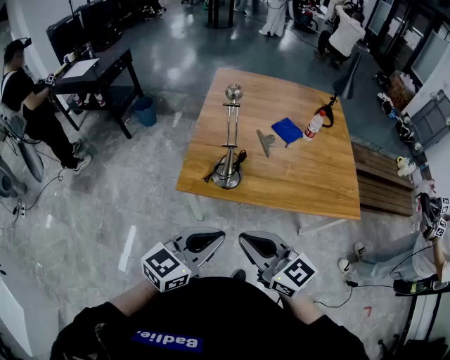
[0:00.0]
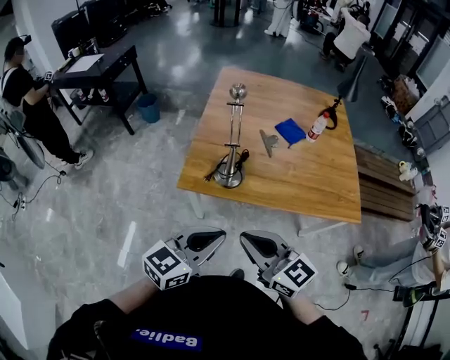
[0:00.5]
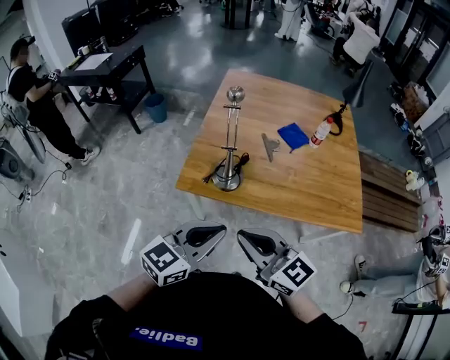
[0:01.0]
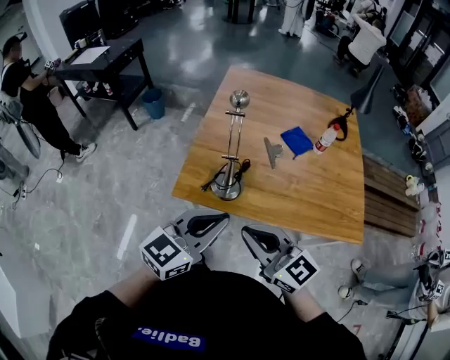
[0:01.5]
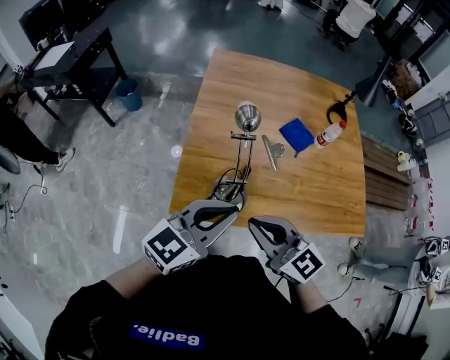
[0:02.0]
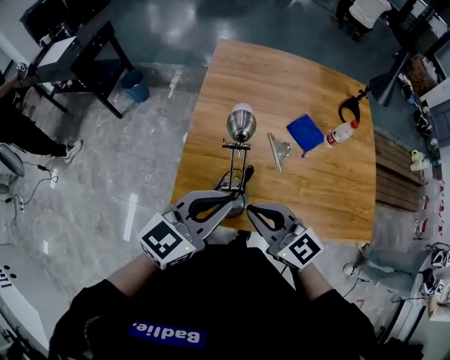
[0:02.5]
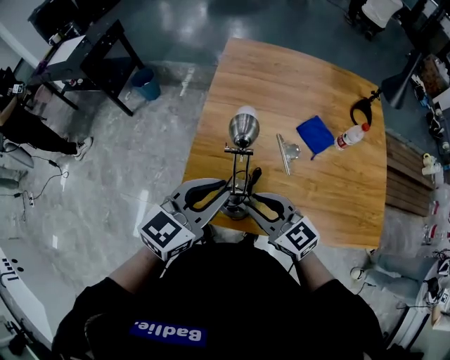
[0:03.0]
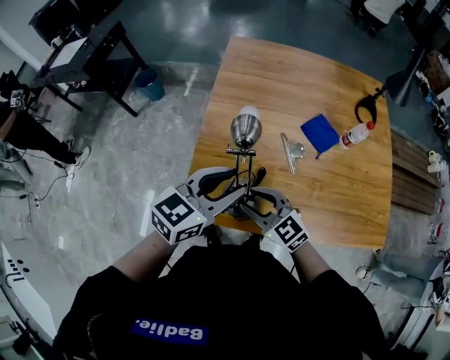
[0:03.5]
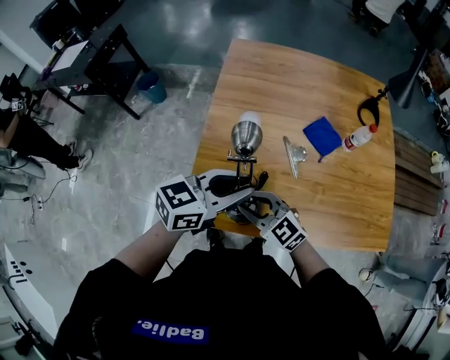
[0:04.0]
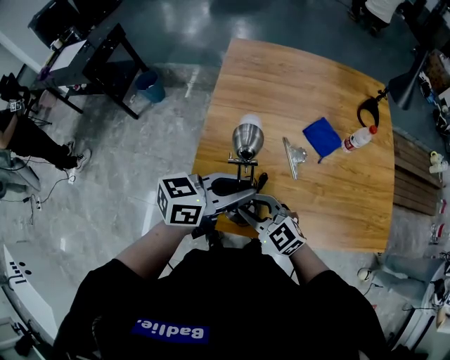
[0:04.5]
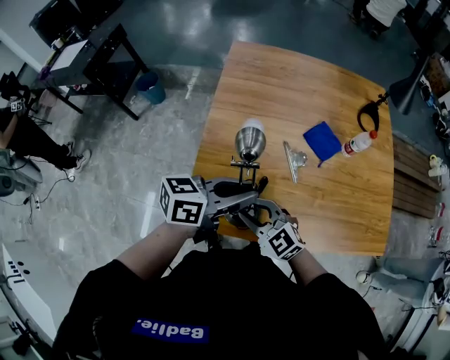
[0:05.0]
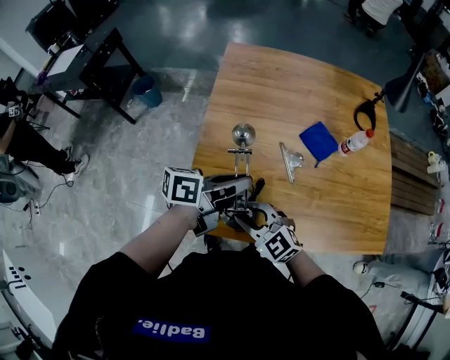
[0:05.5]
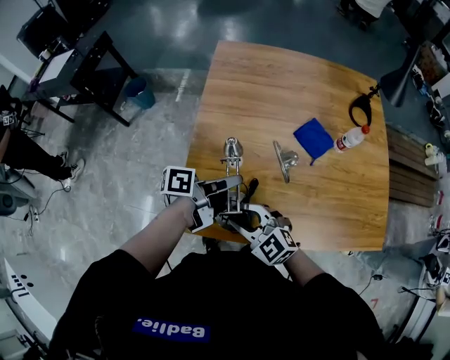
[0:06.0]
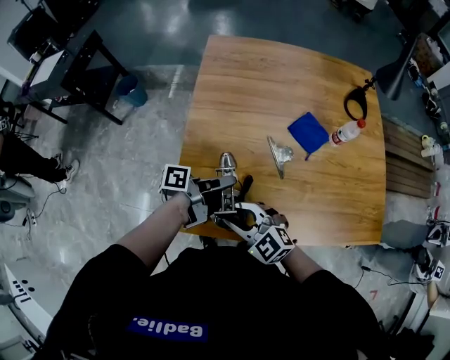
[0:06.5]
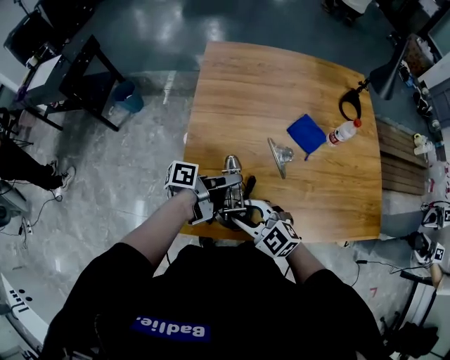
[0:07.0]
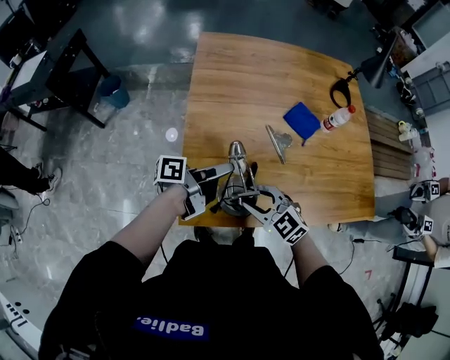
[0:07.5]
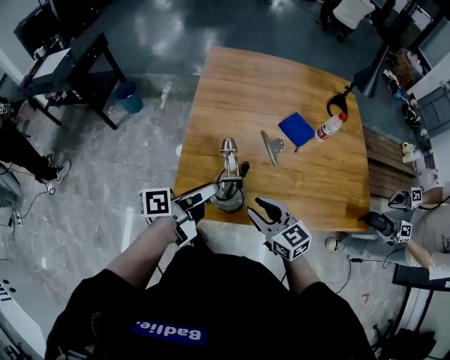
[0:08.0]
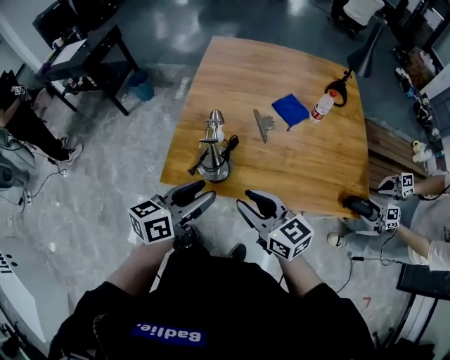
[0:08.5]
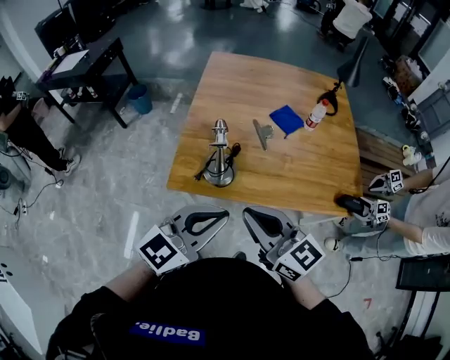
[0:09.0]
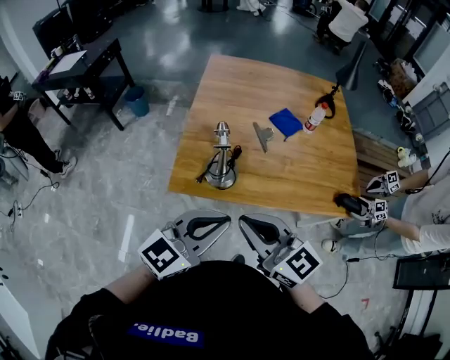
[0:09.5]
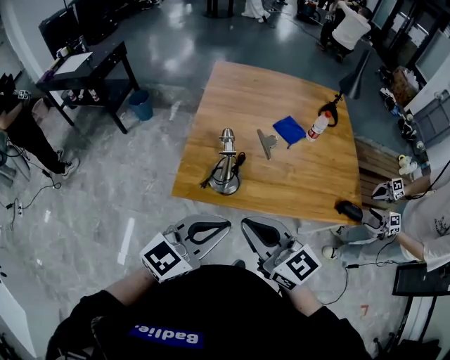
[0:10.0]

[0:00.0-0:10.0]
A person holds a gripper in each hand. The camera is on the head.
0:00.0 to 0:02.0: The two grippers go some 25 cm forward.
0:02.0 to 0:04.0: The left gripper moves about 15 cm. The right gripper goes some 15 cm downward, swivels some 20 degrees, and opens up.
0:04.0 to 0:06.0: The left gripper goes some 10 cm downward, and twists about 60 degrees counterclockwise, seen from behind.
0:06.0 to 0:08.0: The right gripper changes place by roughly 10 cm, and swivels approximately 30 degrees; the left gripper moves approximately 15 cm, and opens.
0:08.0 to 0:10.0: Both grippers travel together backward and upward, roughly 25 cm. The right gripper closes its fingers, while the left gripper twists about 80 degrees clockwise, seen from behind, and closes.

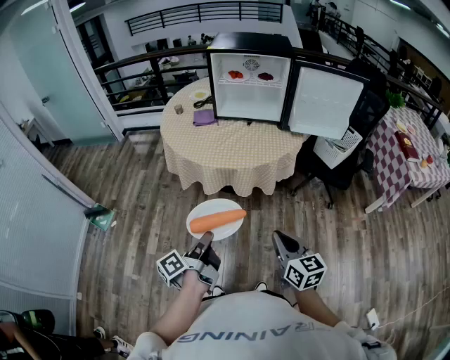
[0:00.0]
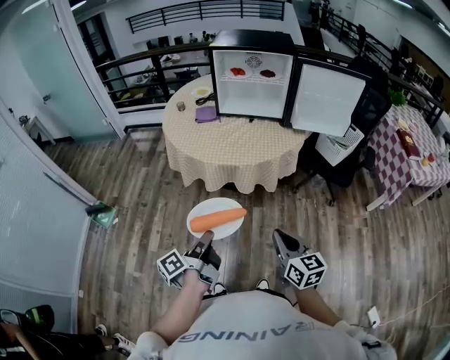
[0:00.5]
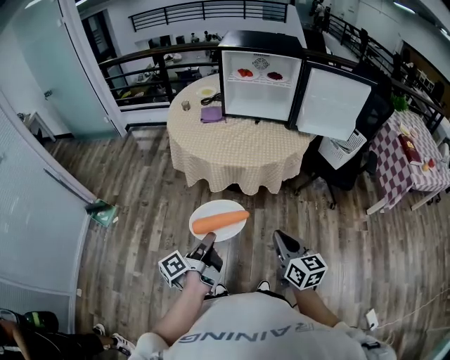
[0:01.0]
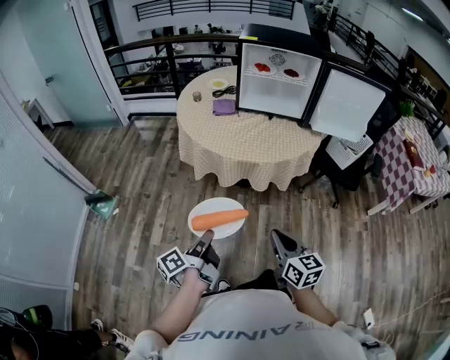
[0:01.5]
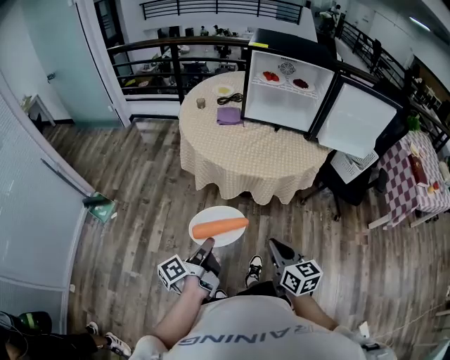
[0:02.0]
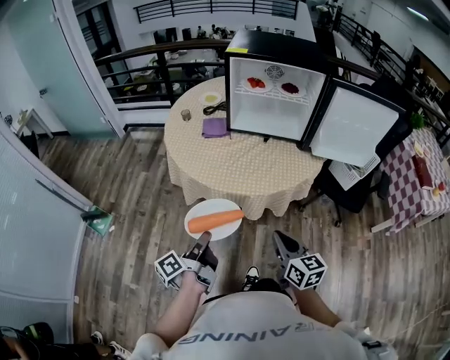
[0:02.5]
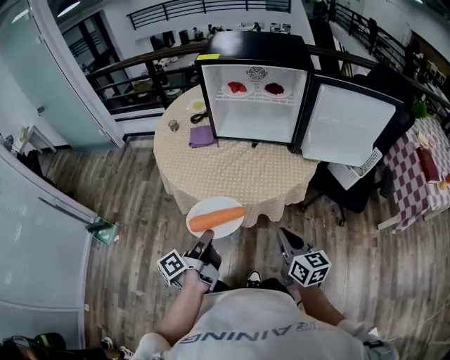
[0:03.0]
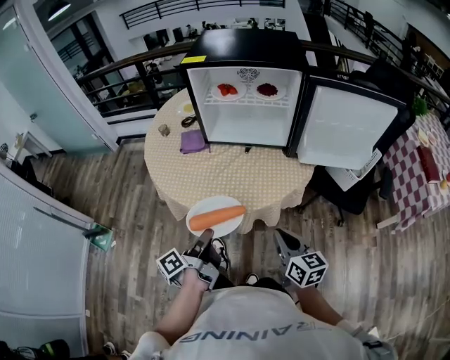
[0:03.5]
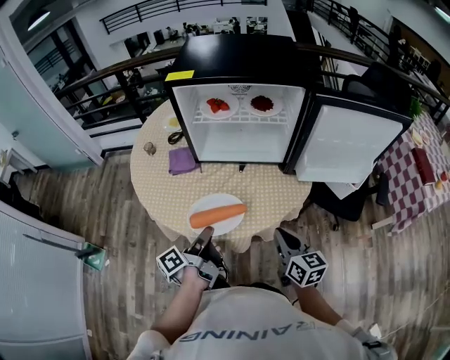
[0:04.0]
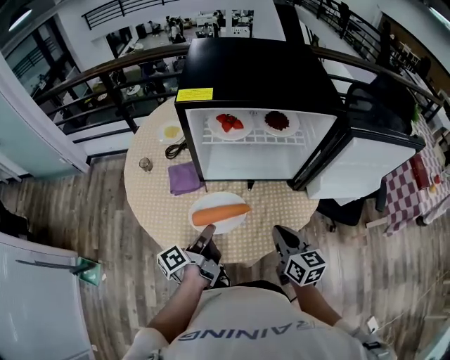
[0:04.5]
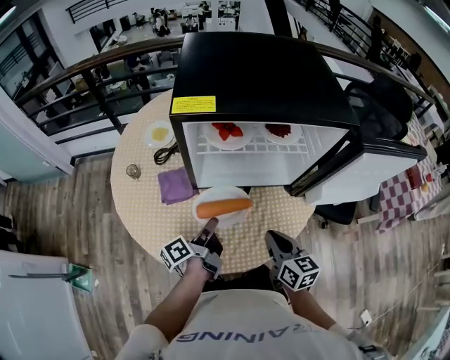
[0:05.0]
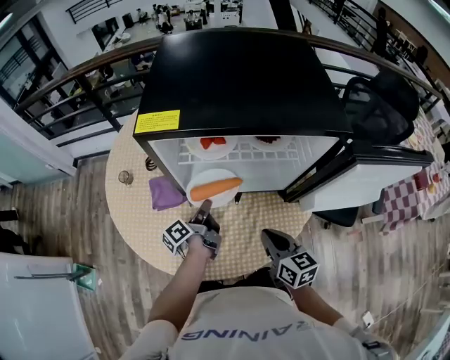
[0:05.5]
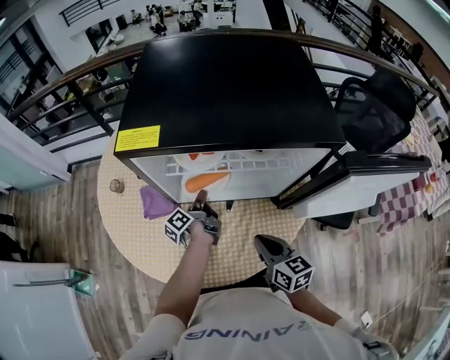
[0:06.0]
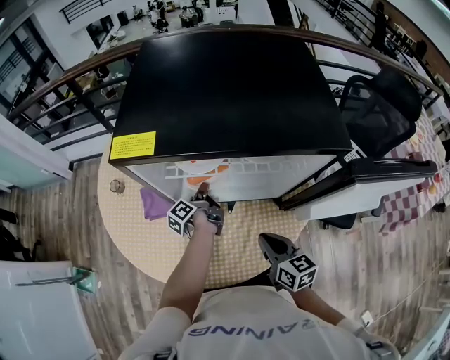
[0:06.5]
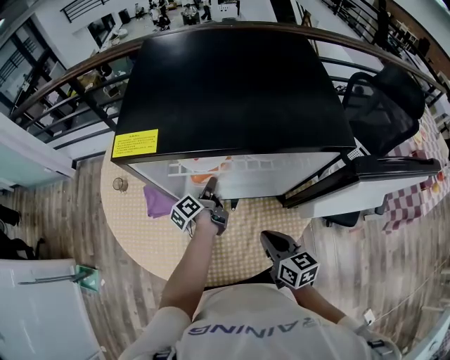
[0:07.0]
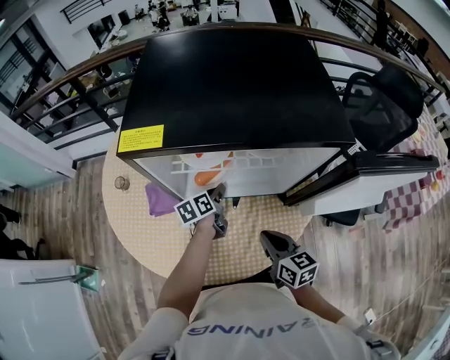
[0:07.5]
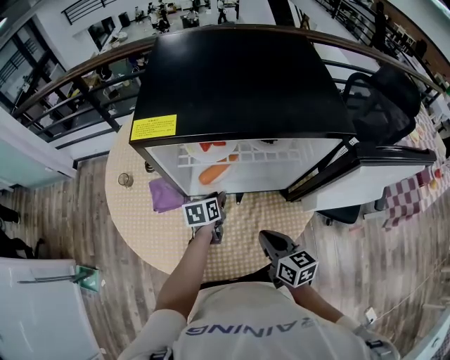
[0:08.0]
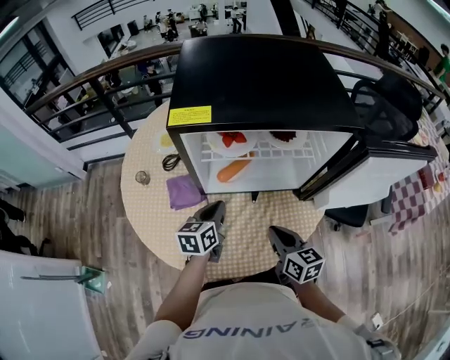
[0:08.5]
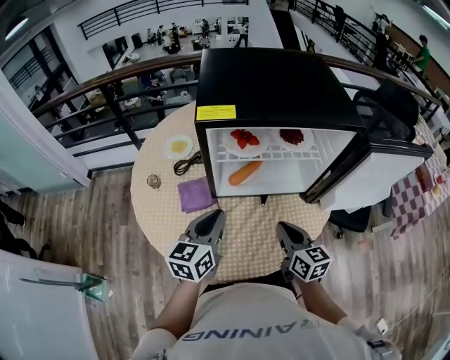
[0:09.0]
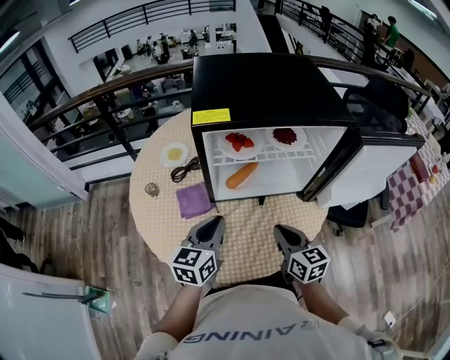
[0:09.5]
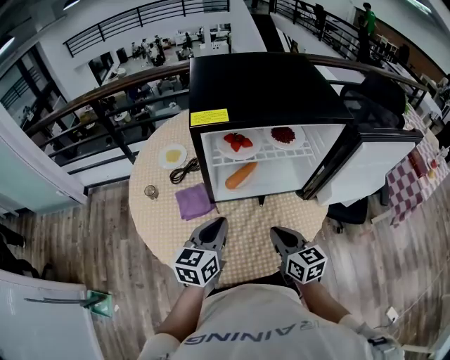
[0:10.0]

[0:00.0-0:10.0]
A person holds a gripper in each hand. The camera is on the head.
0:00.0 to 0:02.0: The right gripper moves roughly 15 cm.
0:02.0 to 0:04.0: The right gripper ends up about 35 cm from where it was.
0:04.0 to 0:06.0: The right gripper ends up some 15 cm from where it was.
0:08.0 to 0:10.0: The right gripper changes place by about 5 cm.

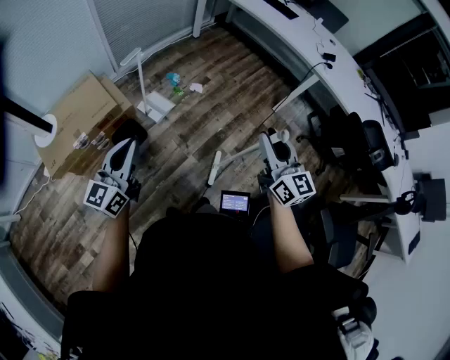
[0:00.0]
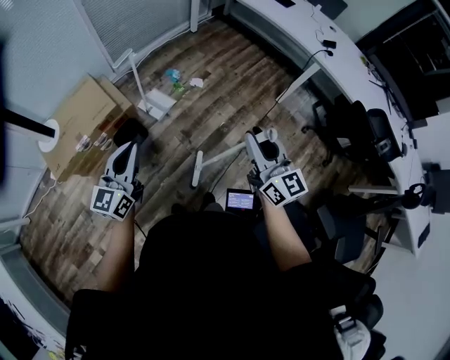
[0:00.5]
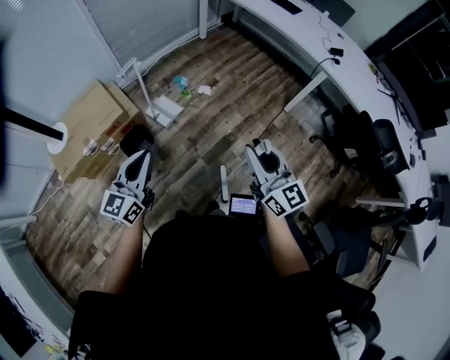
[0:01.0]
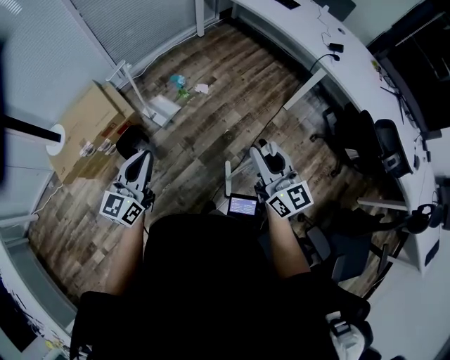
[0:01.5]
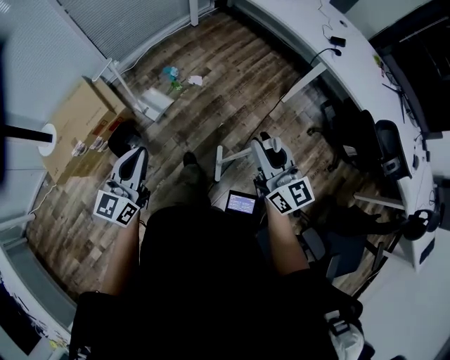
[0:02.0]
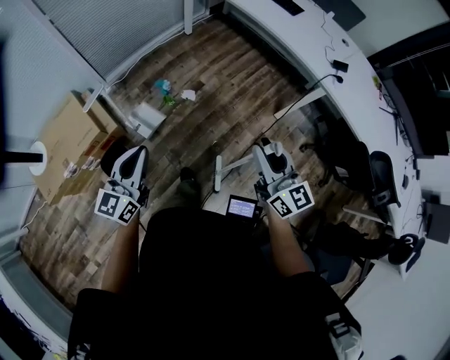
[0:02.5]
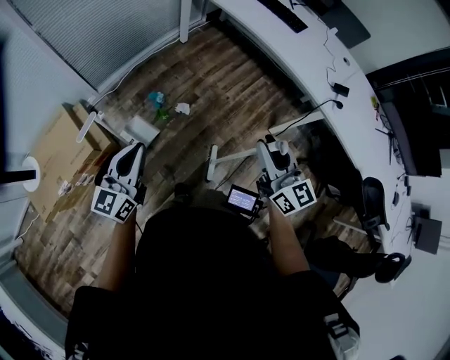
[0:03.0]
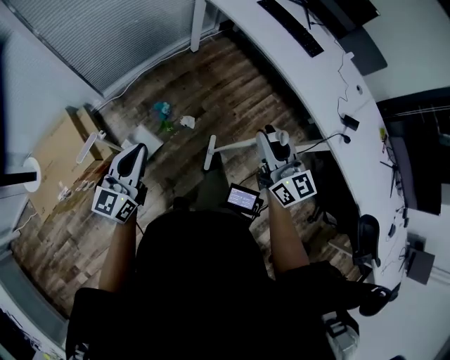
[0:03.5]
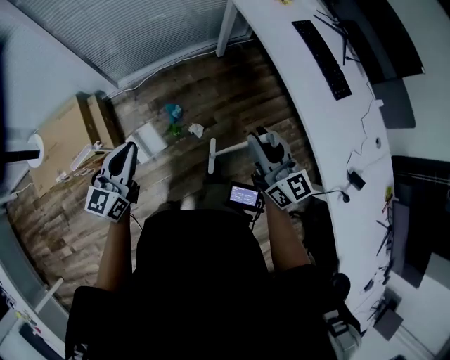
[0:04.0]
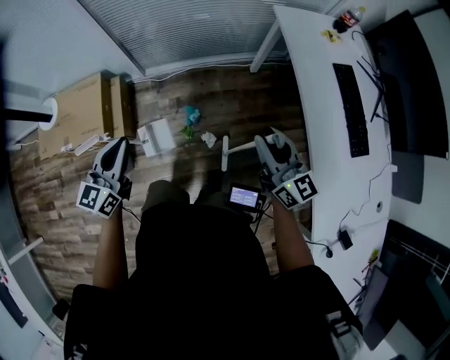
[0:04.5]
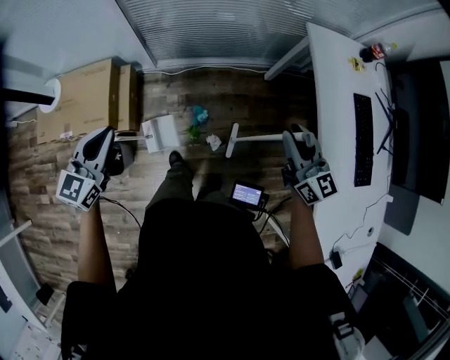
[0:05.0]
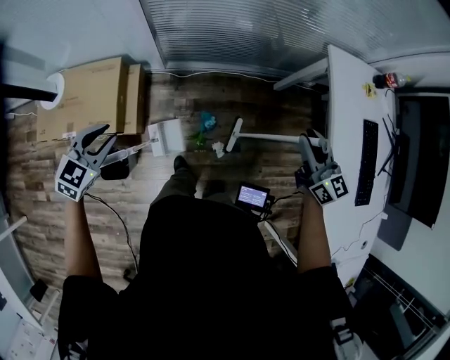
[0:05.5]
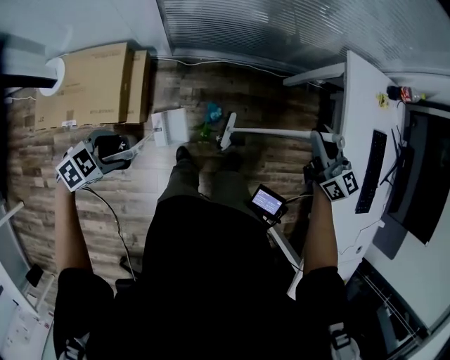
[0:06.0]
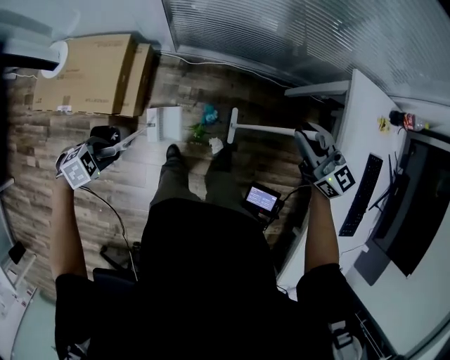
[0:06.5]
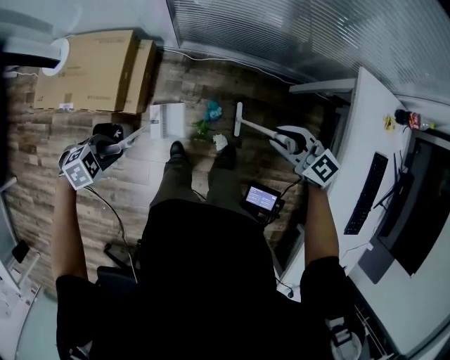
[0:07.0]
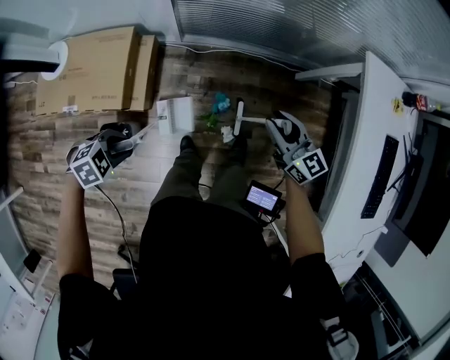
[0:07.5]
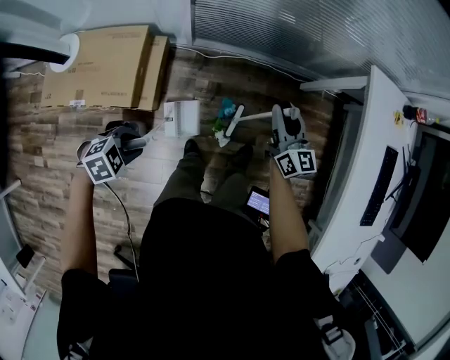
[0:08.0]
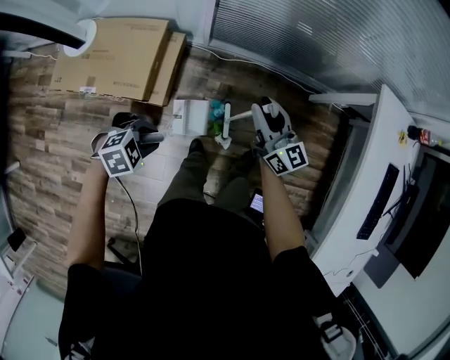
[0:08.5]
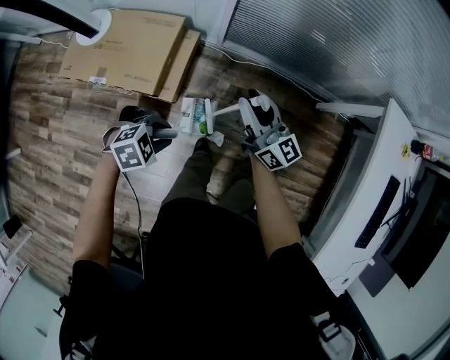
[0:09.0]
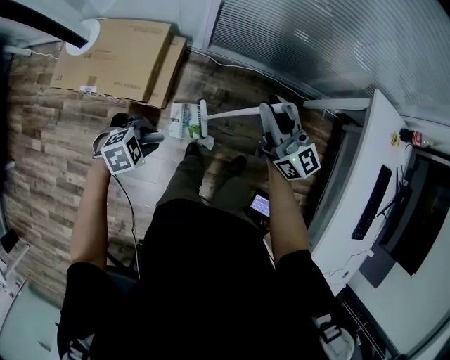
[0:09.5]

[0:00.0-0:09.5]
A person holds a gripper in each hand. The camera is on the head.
0:00.0 to 0:02.0: Both grippers move to the right and forward, some 15 cm.
0:02.0 to 0:04.0: The two grippers travel together, forward, about 60 cm. The right gripper changes its angle by approximately 20 degrees.
0:04.0 to 0:05.5: The right gripper shifts some 30 cm forward, and changes its angle by approximately 20 degrees; the left gripper shifts roughly 30 cm to the left and forward, points its fingers some 30 degrees further downward, and opens its fingers.
0:05.5 to 0:07.5: The right gripper moves roughly 20 cm, while the left gripper is displaced downward by roughly 15 cm, swivels about 40 degrees, and opens, then closes again.
0:07.5 to 0:09.5: The right gripper shifts by about 20 cm, and changes its angle by some 20 degrees.
